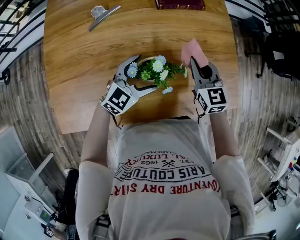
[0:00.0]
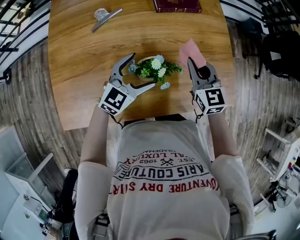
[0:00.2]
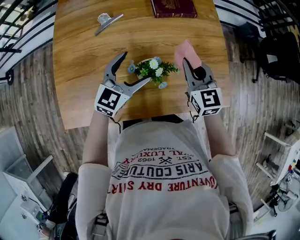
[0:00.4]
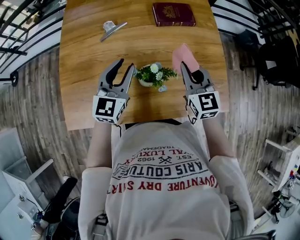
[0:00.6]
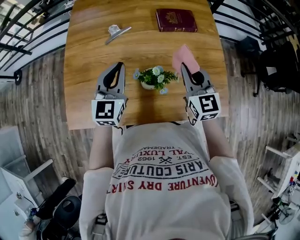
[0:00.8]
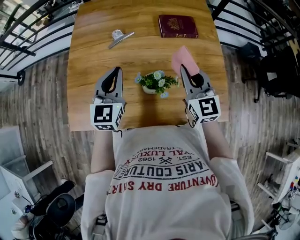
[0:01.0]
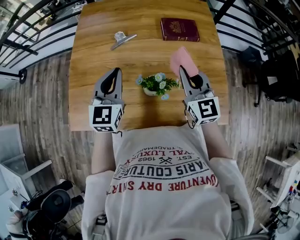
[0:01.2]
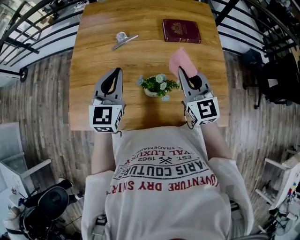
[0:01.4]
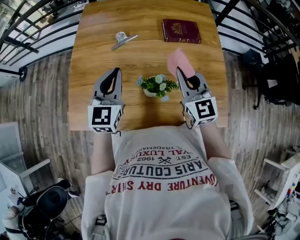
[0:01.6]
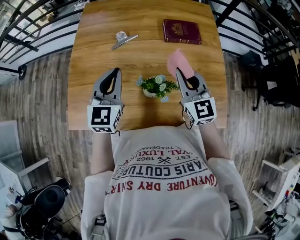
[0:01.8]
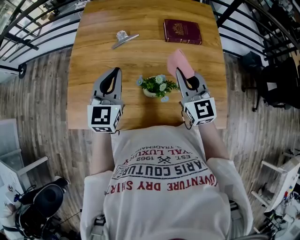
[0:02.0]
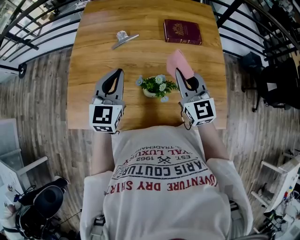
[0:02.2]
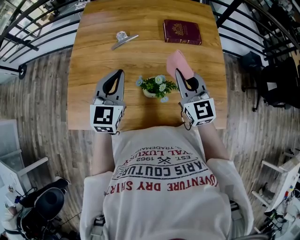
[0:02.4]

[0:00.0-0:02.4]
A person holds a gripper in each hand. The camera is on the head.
0:00.0 to 0:01.2: The grippers both shift upward by some 15 cm. The left gripper rotates about 50 degrees, and closes its fingers.
0:01.2 to 0:02.4: There are only small adjustments of the grippers.

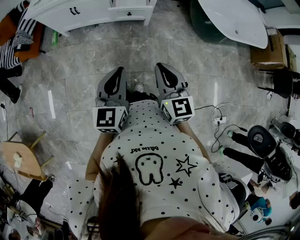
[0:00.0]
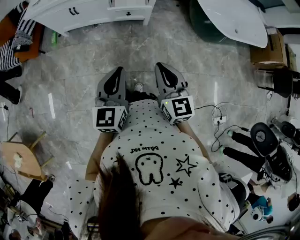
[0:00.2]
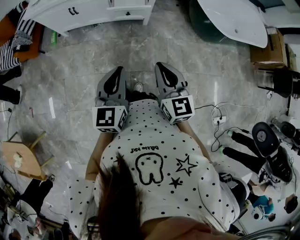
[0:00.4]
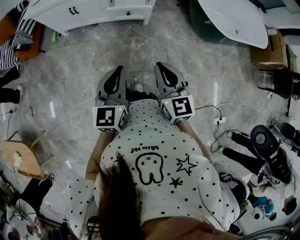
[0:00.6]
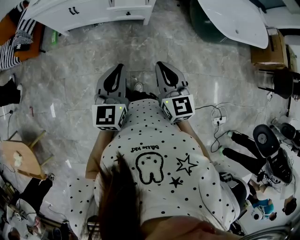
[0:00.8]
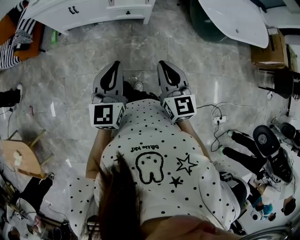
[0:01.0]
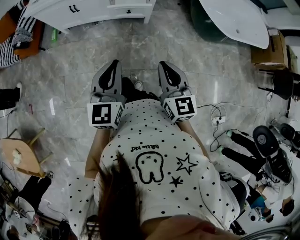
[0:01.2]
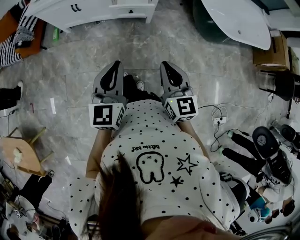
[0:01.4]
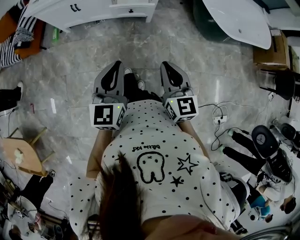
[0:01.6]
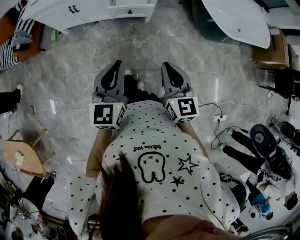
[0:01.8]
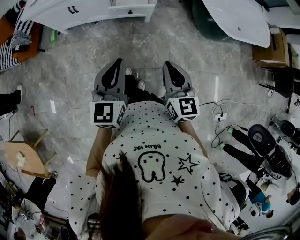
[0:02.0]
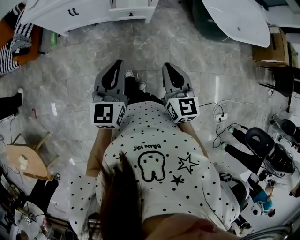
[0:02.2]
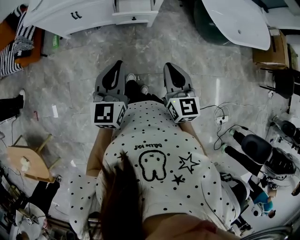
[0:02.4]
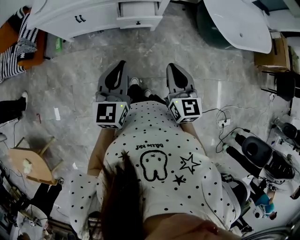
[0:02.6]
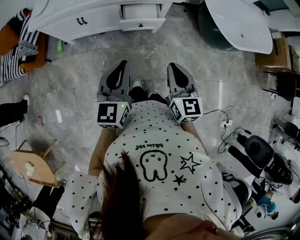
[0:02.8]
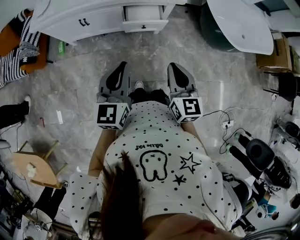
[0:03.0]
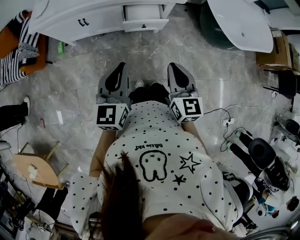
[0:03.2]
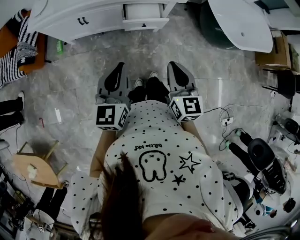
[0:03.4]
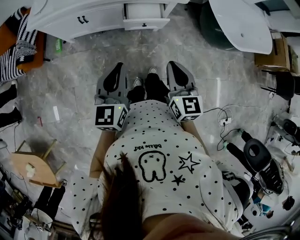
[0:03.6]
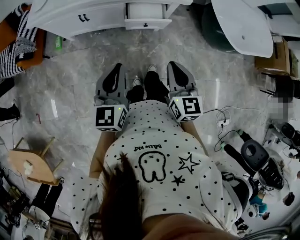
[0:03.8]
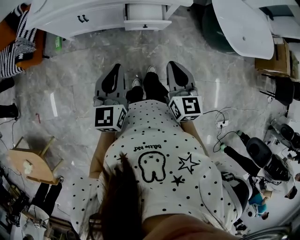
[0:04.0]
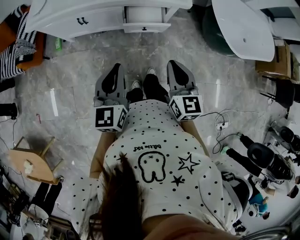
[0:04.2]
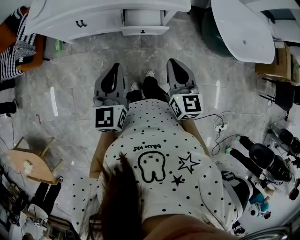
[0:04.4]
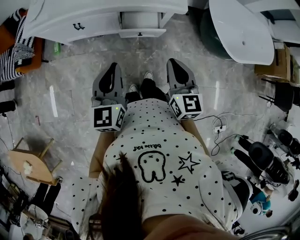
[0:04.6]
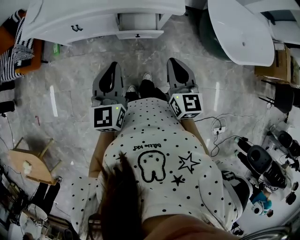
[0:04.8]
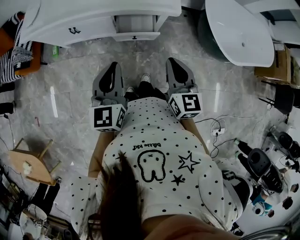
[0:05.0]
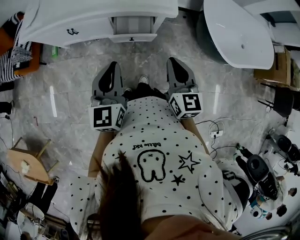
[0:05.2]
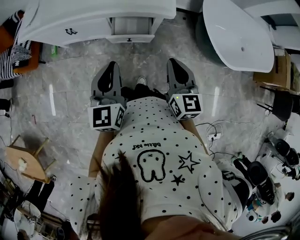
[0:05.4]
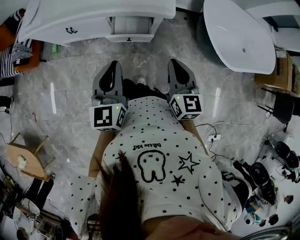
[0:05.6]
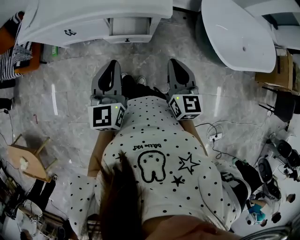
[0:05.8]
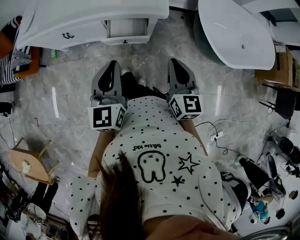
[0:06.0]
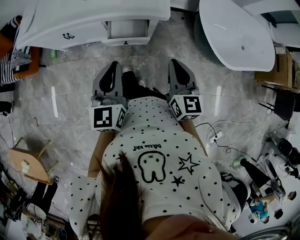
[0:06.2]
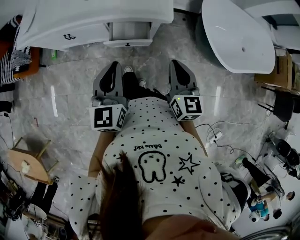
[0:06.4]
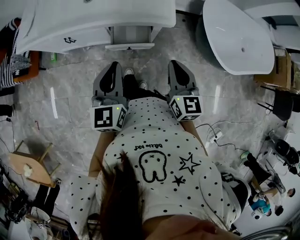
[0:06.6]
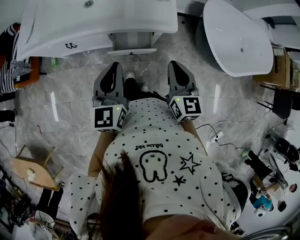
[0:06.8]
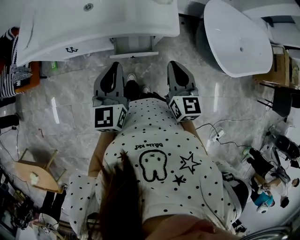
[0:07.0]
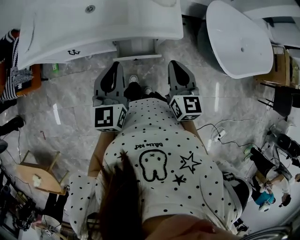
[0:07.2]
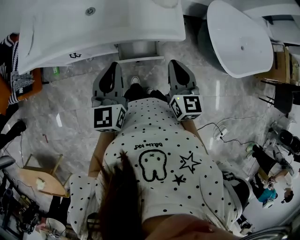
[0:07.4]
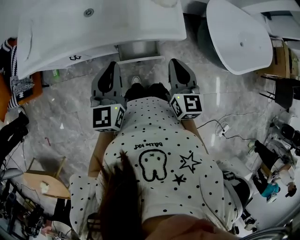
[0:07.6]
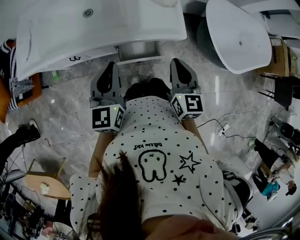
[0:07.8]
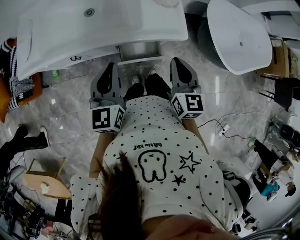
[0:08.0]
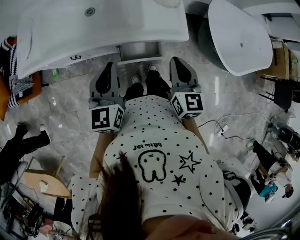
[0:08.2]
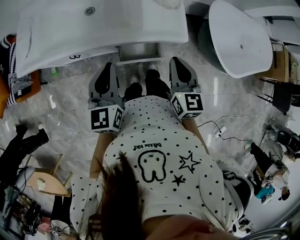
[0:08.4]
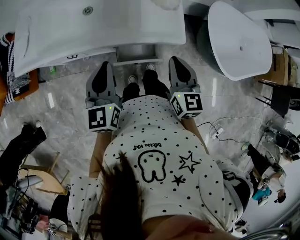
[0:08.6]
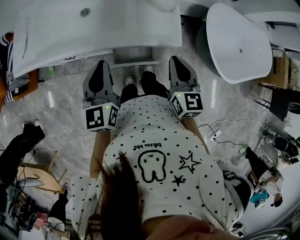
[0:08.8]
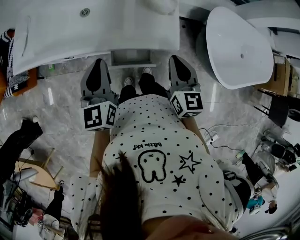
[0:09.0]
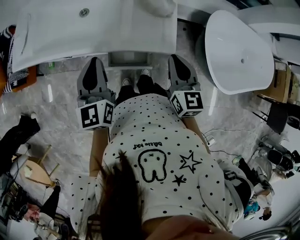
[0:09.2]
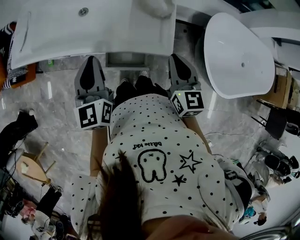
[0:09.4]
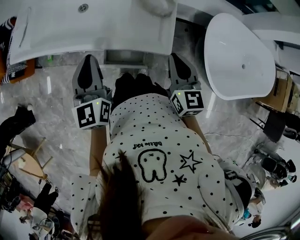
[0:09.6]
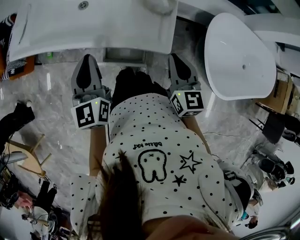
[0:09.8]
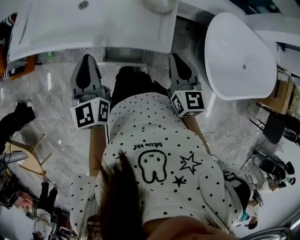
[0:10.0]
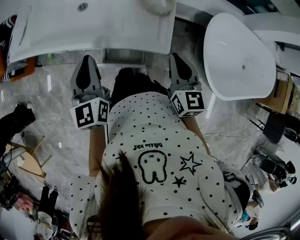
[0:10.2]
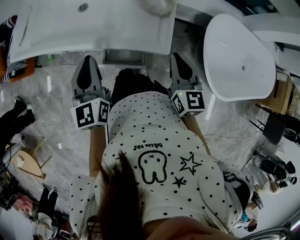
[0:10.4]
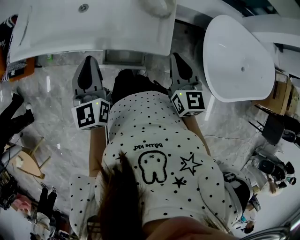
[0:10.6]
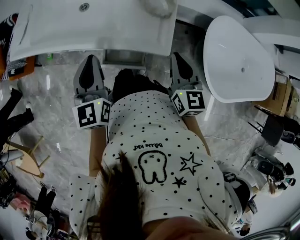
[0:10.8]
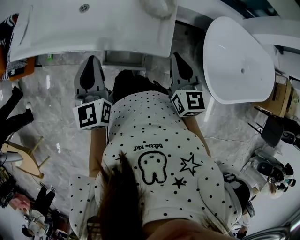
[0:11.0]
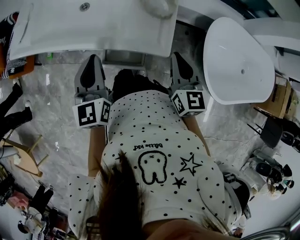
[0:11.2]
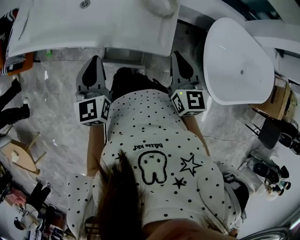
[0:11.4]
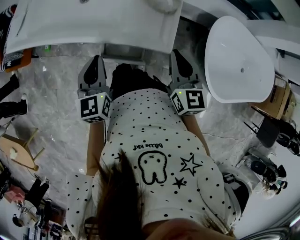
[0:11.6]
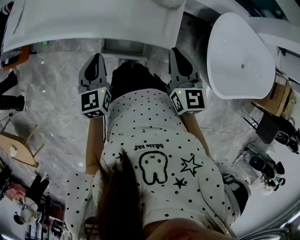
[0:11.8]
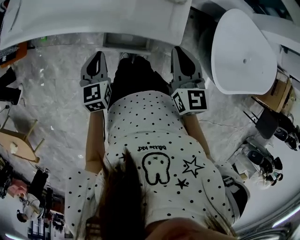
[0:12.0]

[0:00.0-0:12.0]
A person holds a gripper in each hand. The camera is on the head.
0:00.0 to 0:01.6: The grippers stay close to where they were, moving slightly.
0:01.6 to 0:03.0: Both grippers travel together forward and to the left, about 15 cm.
0:03.0 to 0:04.4: The two grippers go roughly 10 cm forward.
0:04.4 to 0:06.0: The grippers both shift to the right and forward by some 15 cm.
0:06.0 to 0:07.6: Both grippers travel together forward and to the left, roughly 20 cm.
0:07.6 to 0:09.0: The two grippers go about 10 cm forward.
0:09.0 to 0:10.4: The right gripper goes about 5 cm to the right.
0:10.4 to 0:12.0: The left gripper heads downward, covering some 15 cm, and changes its angle by about 20 degrees.

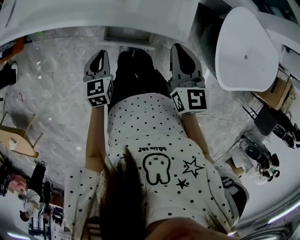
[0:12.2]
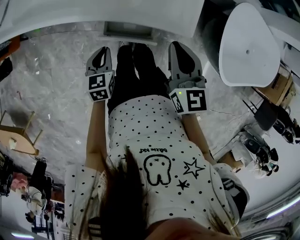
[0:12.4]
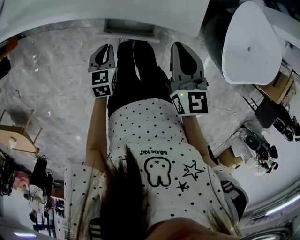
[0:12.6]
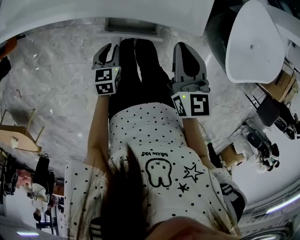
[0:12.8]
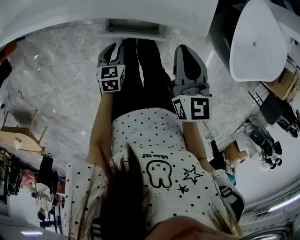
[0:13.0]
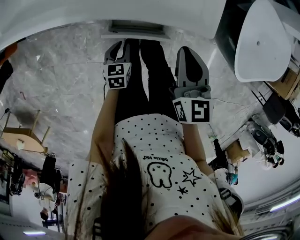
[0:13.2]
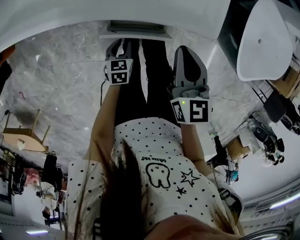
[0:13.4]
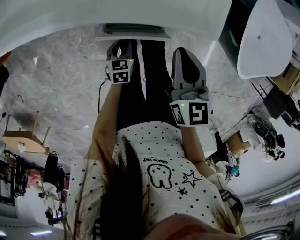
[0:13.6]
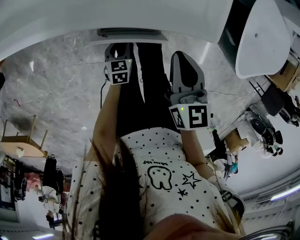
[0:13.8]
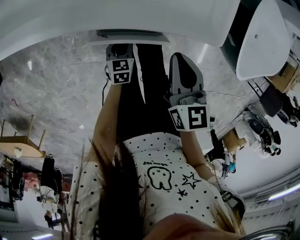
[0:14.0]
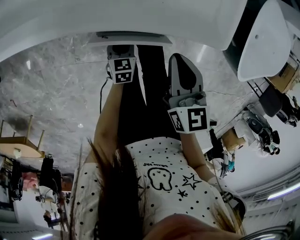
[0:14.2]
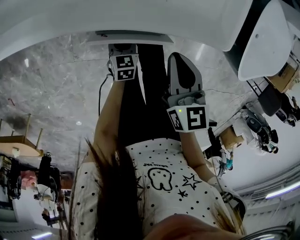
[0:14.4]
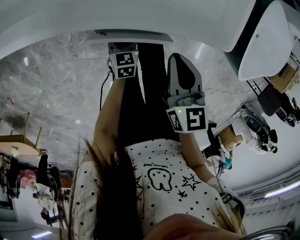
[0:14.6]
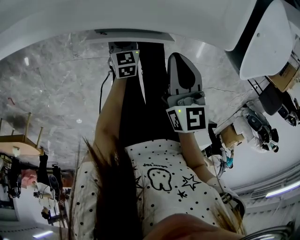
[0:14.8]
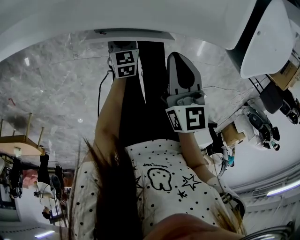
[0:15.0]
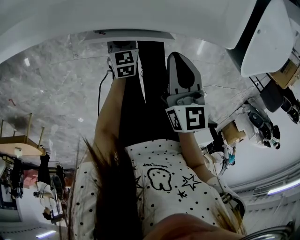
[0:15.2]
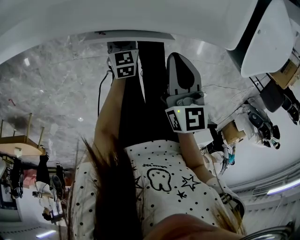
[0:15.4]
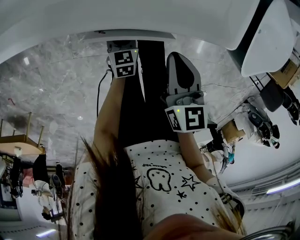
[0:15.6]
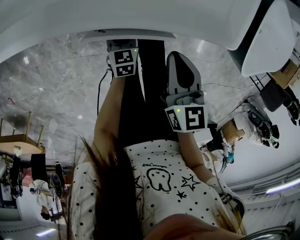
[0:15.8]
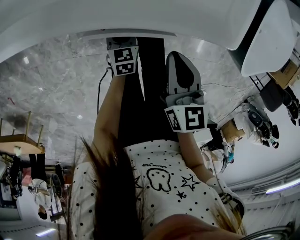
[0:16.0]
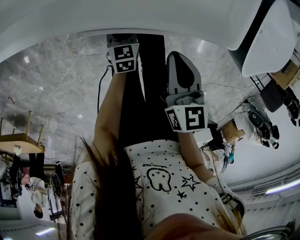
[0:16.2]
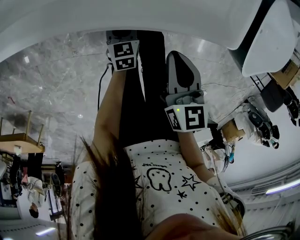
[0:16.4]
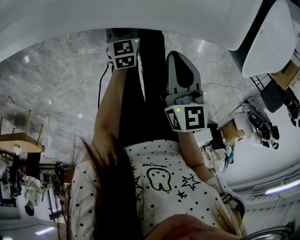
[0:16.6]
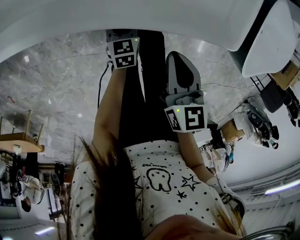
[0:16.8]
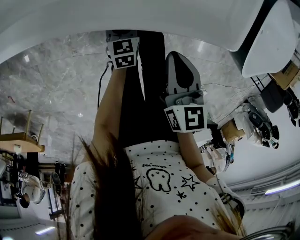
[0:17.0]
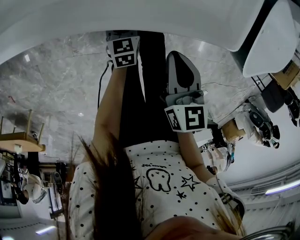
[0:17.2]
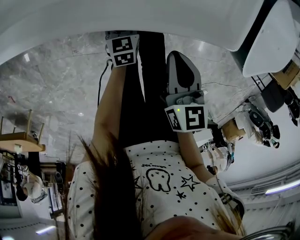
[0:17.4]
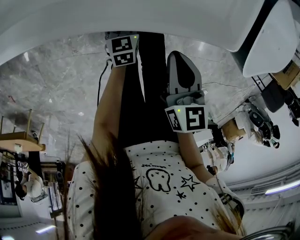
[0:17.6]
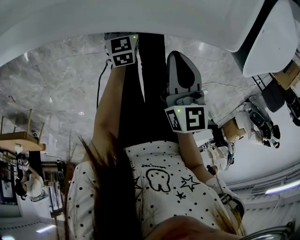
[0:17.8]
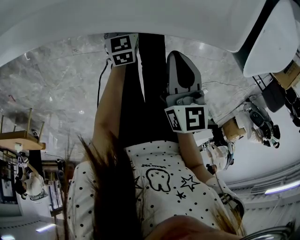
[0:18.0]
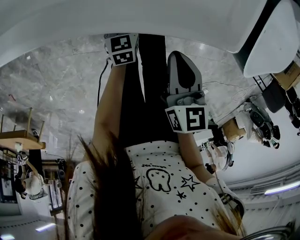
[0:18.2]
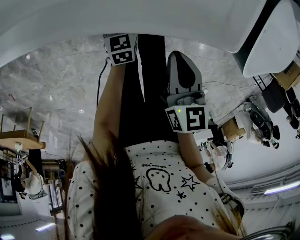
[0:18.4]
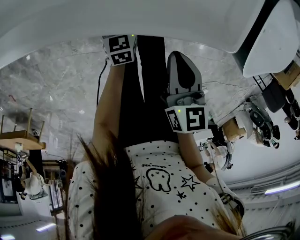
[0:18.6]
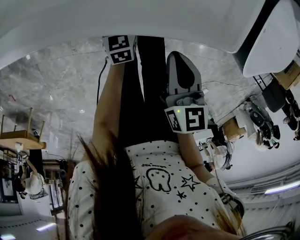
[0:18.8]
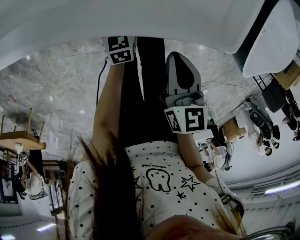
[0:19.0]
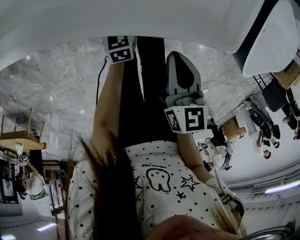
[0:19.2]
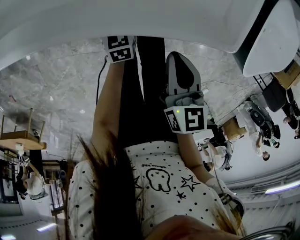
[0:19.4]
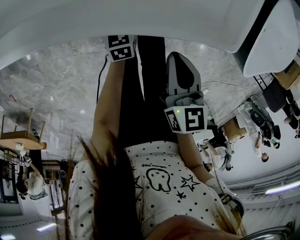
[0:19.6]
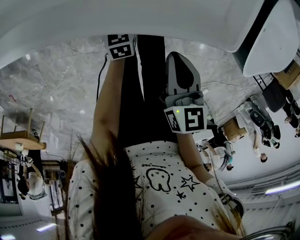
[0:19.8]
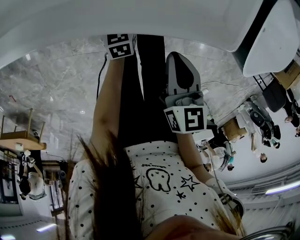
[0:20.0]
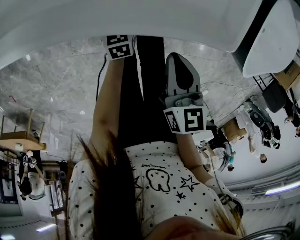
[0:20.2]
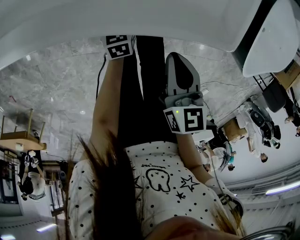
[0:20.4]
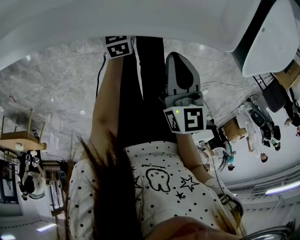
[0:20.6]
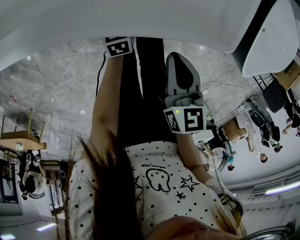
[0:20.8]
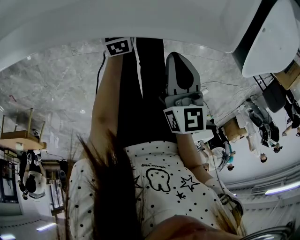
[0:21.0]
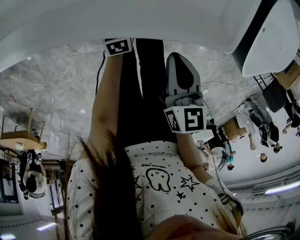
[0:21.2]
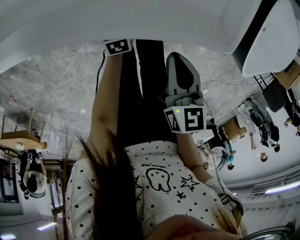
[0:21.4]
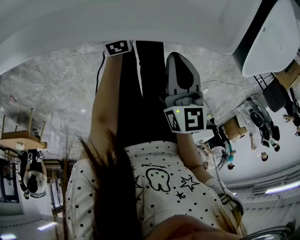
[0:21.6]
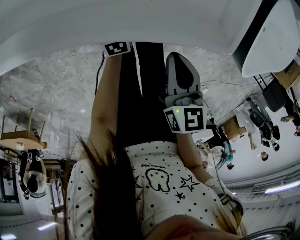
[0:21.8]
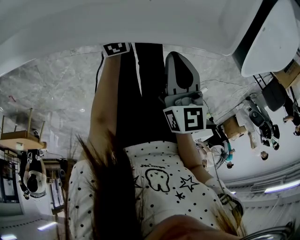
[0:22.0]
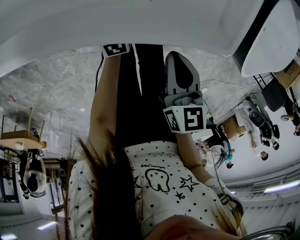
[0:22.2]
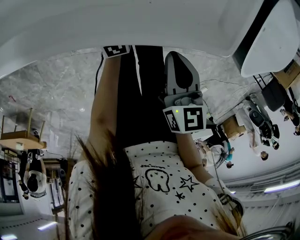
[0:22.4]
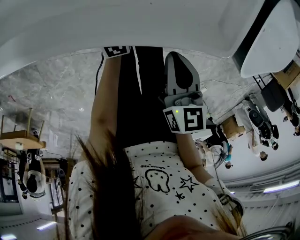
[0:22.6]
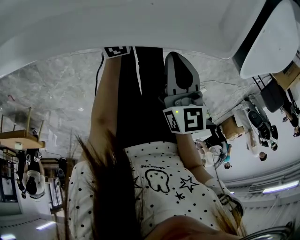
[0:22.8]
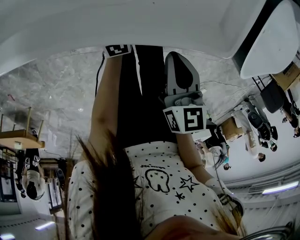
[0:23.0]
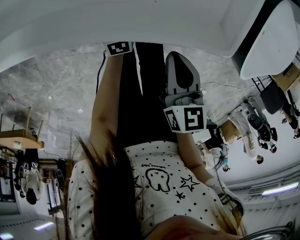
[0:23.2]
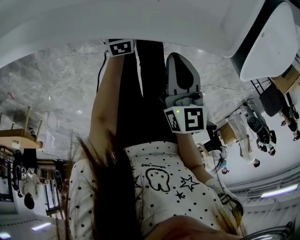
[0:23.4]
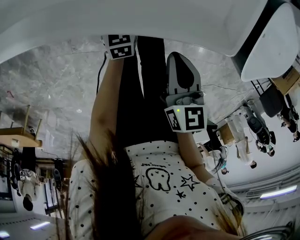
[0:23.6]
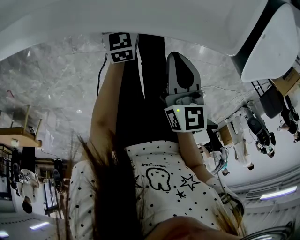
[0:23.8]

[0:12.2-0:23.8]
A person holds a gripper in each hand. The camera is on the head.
0:12.2 to 0:13.6: The right gripper moves downward, approximately 10 cm; the left gripper moves downward, approximately 25 cm, rotates approximately 20 degrees, and opens its fingers.
0:13.6 to 0:15.0: The left gripper changes place by roughly 5 cm. The right gripper shifts some 10 cm downward.
0:15.0 to 0:18.0: The grippers move only a little.
0:18.0 to 0:21.0: The grippers stay close to where they were, moving slightly.
0:21.0 to 0:23.8: The grippers move only a little.
